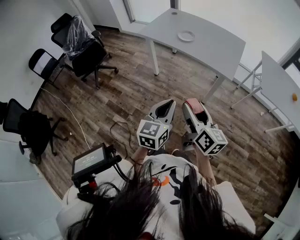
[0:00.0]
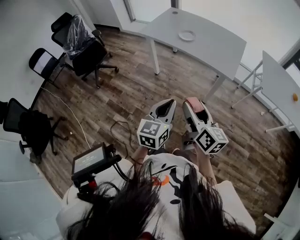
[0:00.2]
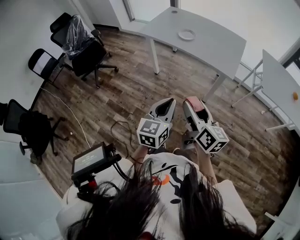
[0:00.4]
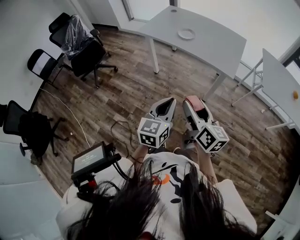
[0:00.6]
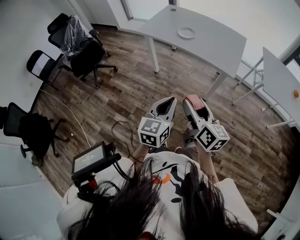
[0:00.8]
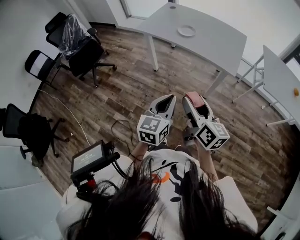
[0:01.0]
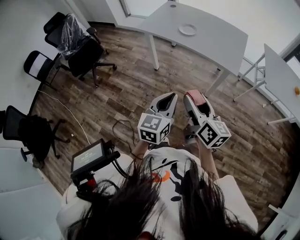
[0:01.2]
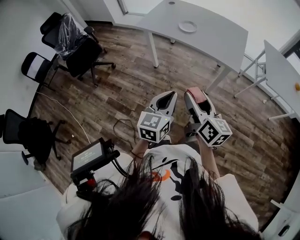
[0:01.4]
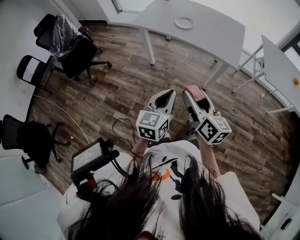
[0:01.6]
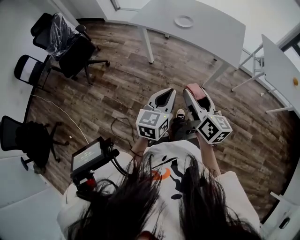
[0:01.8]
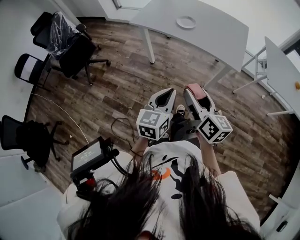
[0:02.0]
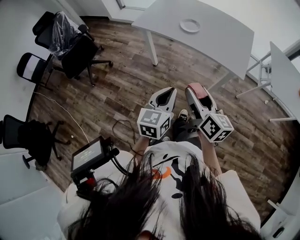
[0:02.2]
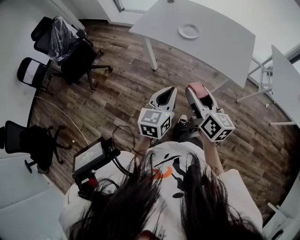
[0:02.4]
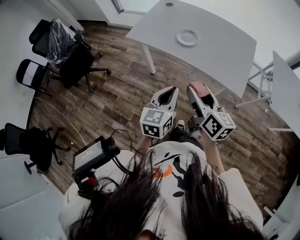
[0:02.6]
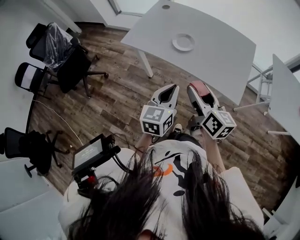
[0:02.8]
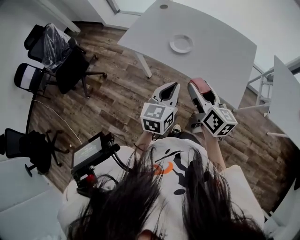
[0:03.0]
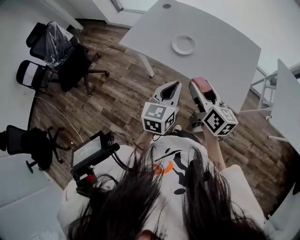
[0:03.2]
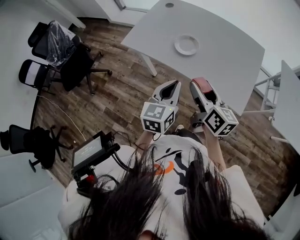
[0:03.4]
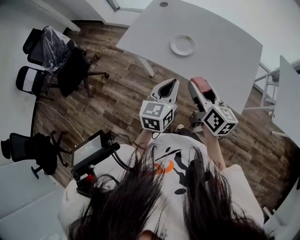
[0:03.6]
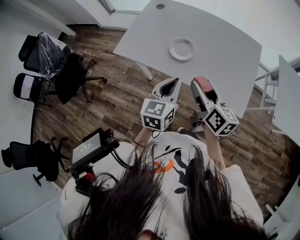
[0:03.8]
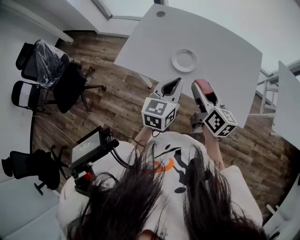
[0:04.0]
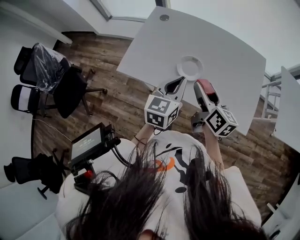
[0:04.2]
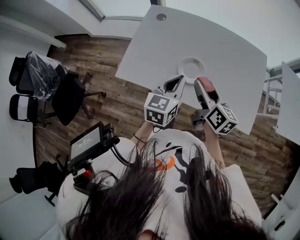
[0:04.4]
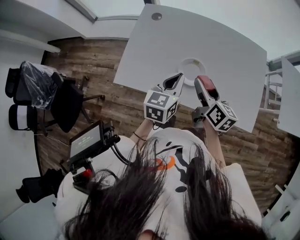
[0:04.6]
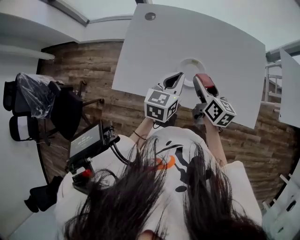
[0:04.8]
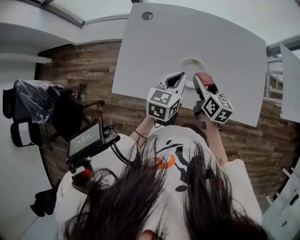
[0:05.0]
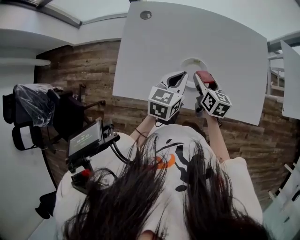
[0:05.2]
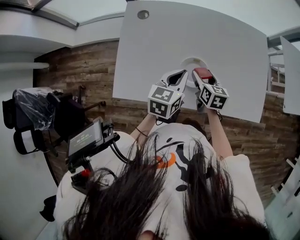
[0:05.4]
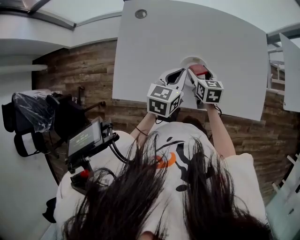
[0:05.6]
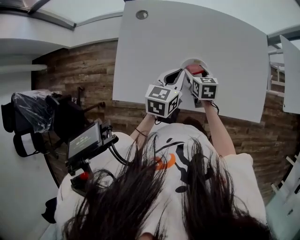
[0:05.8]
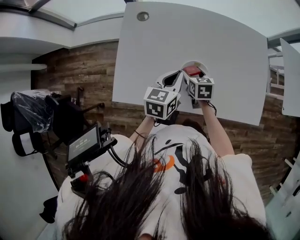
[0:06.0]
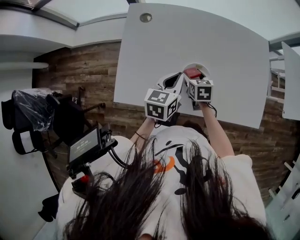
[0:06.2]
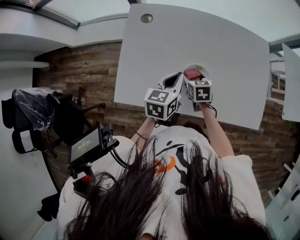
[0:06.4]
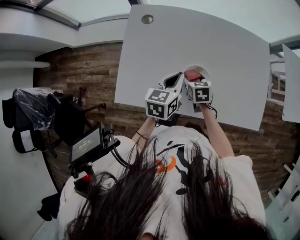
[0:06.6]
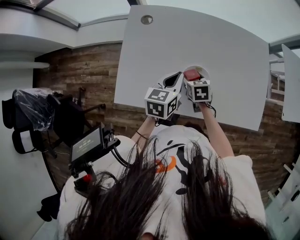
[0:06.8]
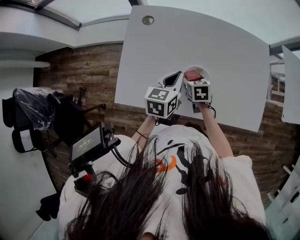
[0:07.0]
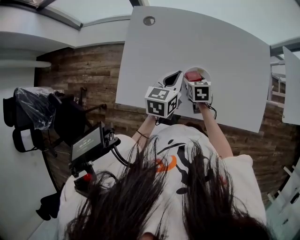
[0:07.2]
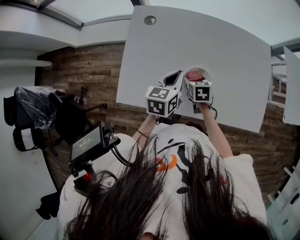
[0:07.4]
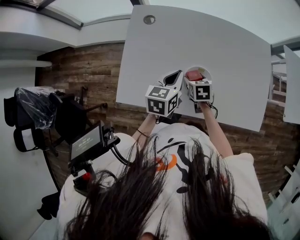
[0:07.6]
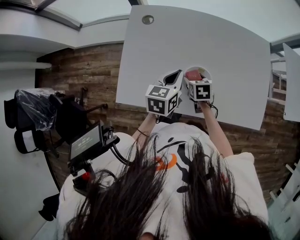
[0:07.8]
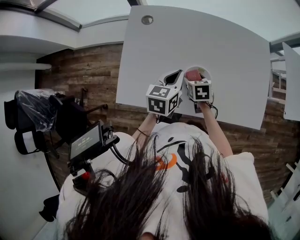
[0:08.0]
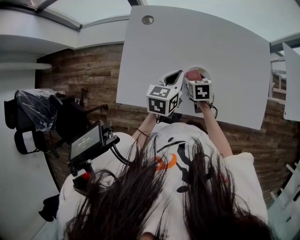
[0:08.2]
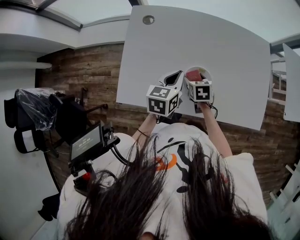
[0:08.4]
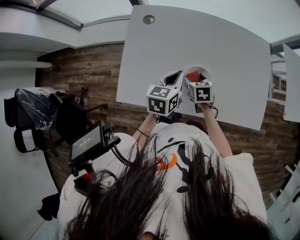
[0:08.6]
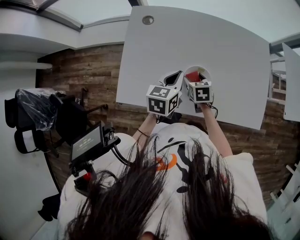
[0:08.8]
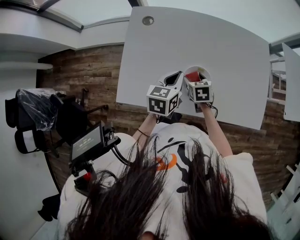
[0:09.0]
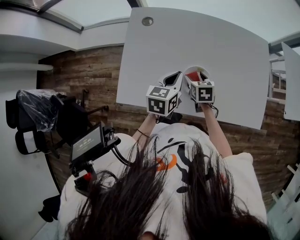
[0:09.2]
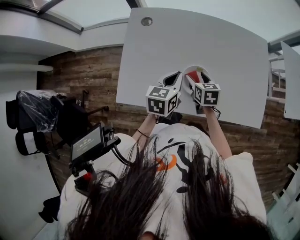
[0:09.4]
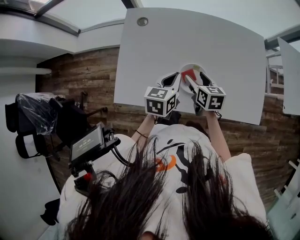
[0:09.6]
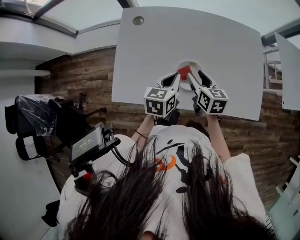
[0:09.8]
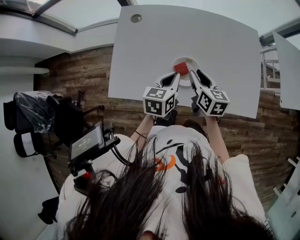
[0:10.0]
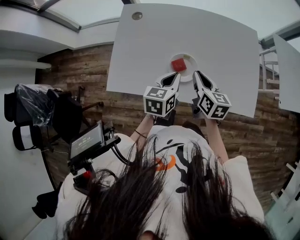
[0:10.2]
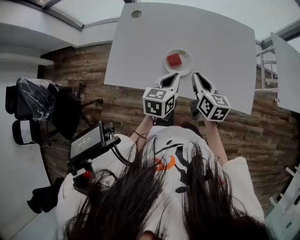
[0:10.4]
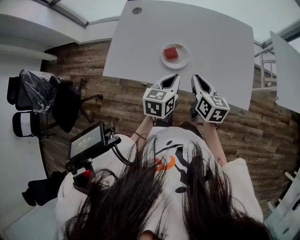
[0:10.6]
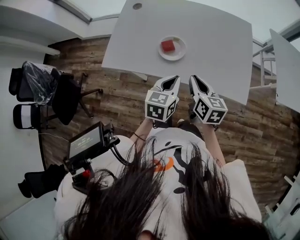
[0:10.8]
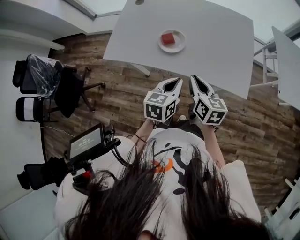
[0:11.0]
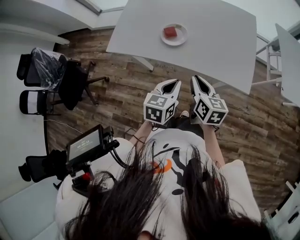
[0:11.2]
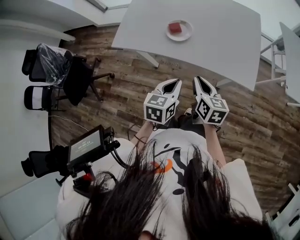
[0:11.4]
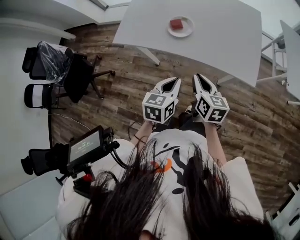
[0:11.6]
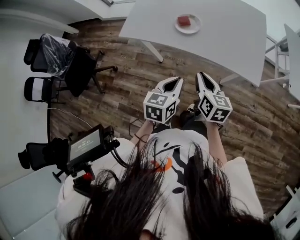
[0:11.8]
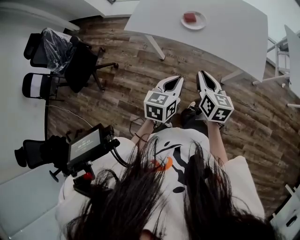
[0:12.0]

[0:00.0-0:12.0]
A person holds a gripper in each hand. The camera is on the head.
0:00.0 to 0:01.6: Both grippers move forward and to the left, approximately 10 cm.
0:01.6 to 0:03.0: Both grippers travel together forward, about 25 cm.
0:03.0 to 0:04.4: The two grippers go approximately 25 cm forward.
0:04.4 to 0:06.0: The left gripper moves forward and downward, about 10 cm; the right gripper shifts roughly 20 cm downward and forward, and tilts its fingers approximately 30 degrees downward.
0:06.0 to 0:07.6: The grippers make only small movements.
0:07.6 to 0:09.0: Neither gripper changes place.
0:09.0 to 0:10.4: The left gripper shifts approximately 15 cm backward and to the right, while the right gripper shifts about 20 cm upward, to the right and backward, changes its angle by approximately 30 degrees, and closes its fingers.
0:10.4 to 0:12.0: The grippers both shift backward by approximately 30 cm.

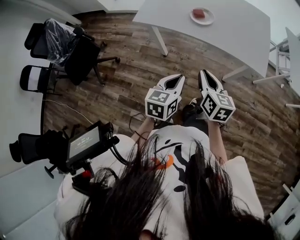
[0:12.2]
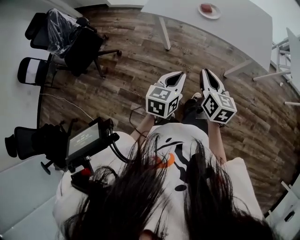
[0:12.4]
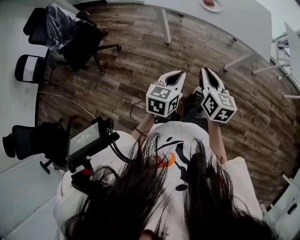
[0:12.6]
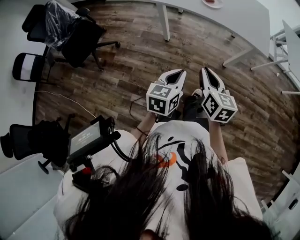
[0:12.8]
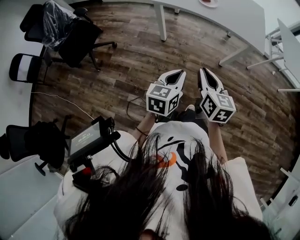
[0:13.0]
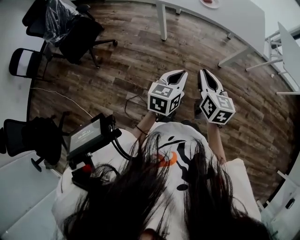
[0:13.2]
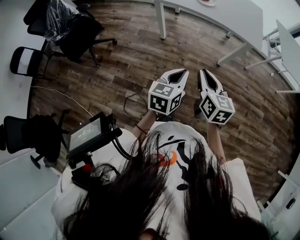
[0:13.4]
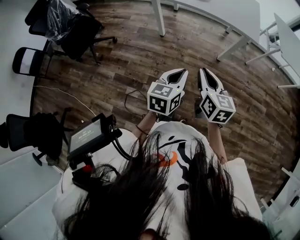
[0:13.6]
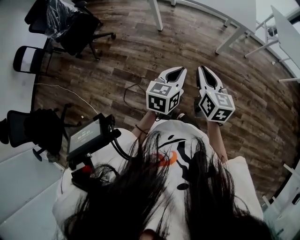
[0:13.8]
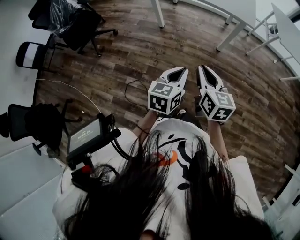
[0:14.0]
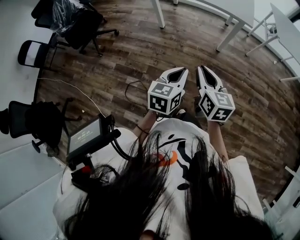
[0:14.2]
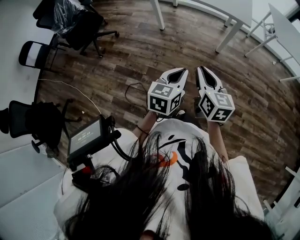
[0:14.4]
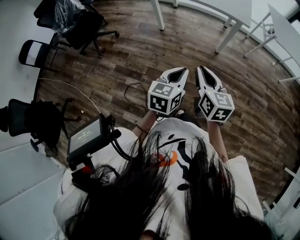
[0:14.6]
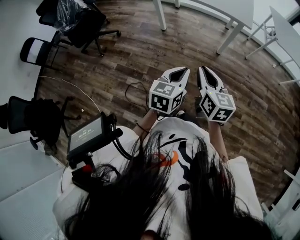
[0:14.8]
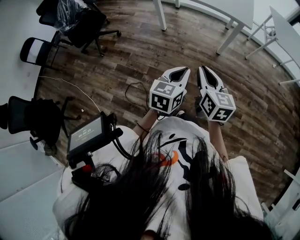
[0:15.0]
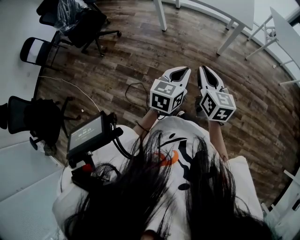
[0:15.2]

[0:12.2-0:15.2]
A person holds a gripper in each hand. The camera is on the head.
0:12.2 to 0:13.8: Both grippers travel together backward, some 35 cm.
0:13.8 to 0:15.2: The grippers both shift backward by about 5 cm.

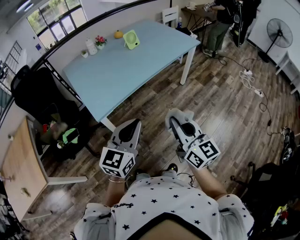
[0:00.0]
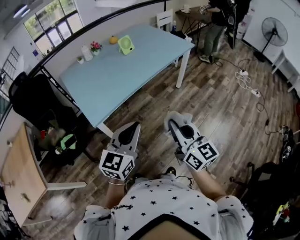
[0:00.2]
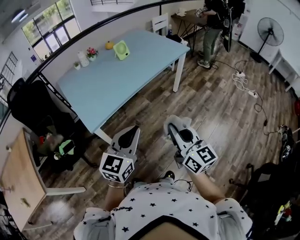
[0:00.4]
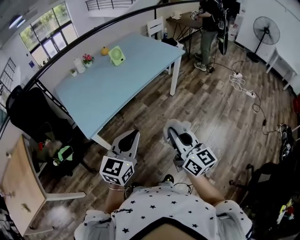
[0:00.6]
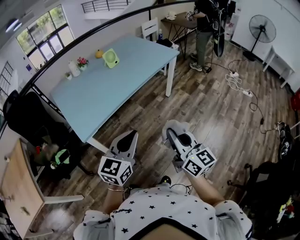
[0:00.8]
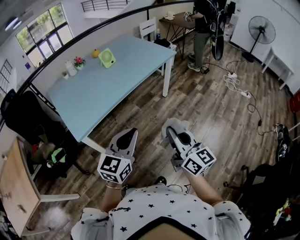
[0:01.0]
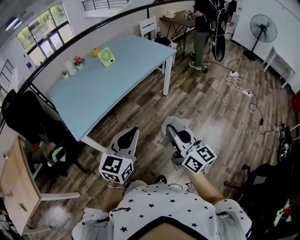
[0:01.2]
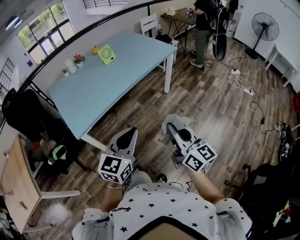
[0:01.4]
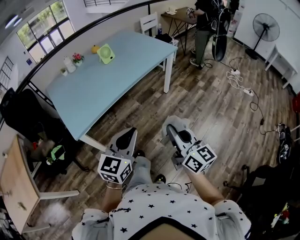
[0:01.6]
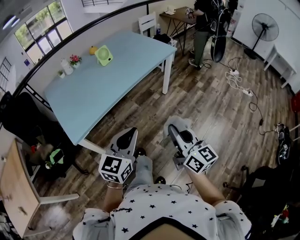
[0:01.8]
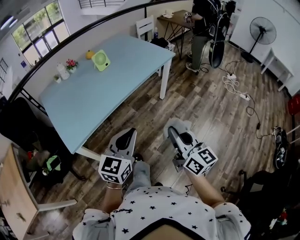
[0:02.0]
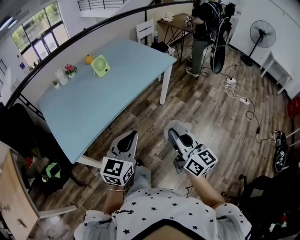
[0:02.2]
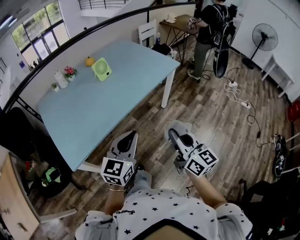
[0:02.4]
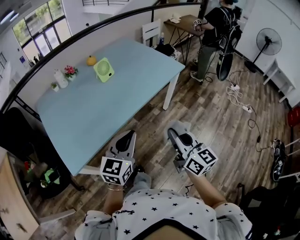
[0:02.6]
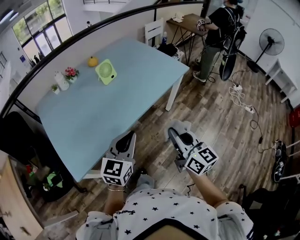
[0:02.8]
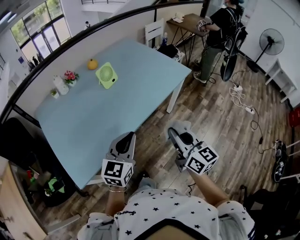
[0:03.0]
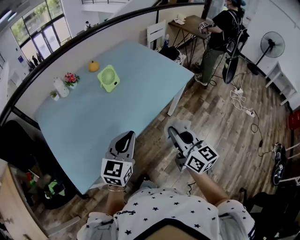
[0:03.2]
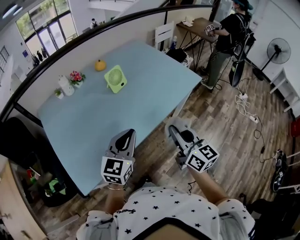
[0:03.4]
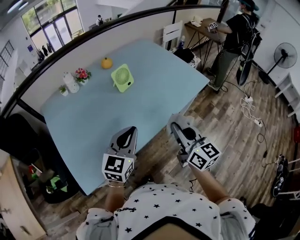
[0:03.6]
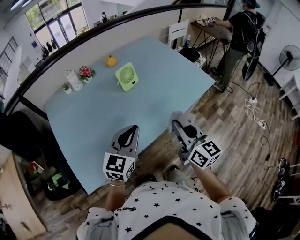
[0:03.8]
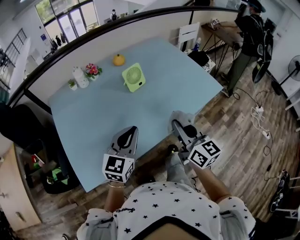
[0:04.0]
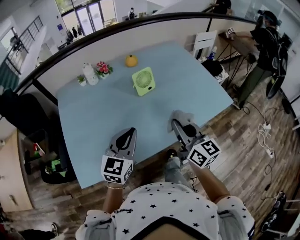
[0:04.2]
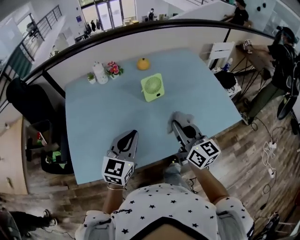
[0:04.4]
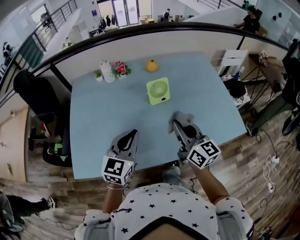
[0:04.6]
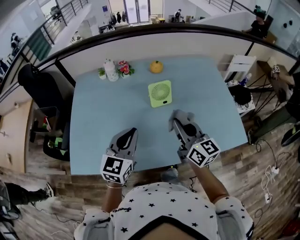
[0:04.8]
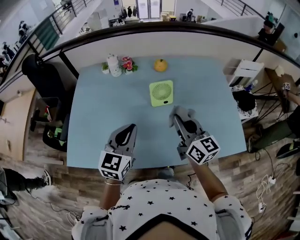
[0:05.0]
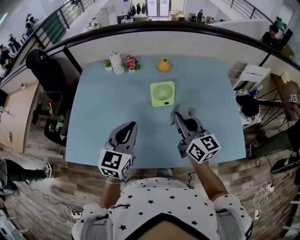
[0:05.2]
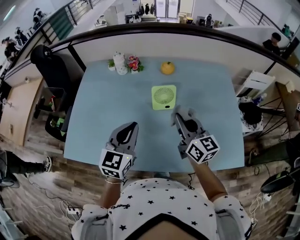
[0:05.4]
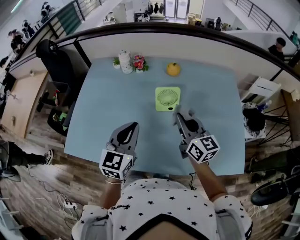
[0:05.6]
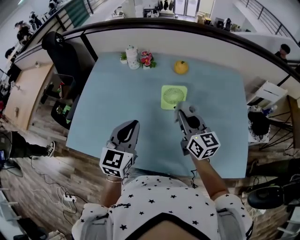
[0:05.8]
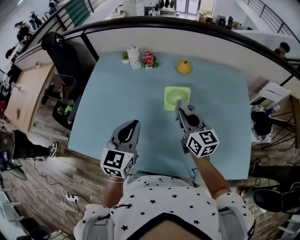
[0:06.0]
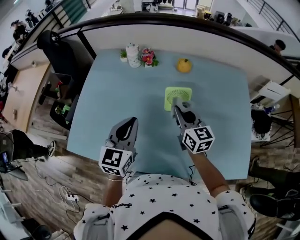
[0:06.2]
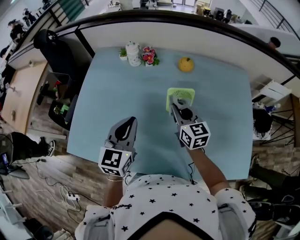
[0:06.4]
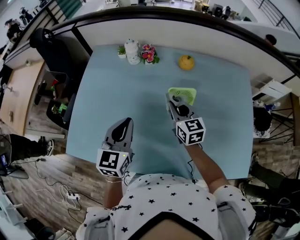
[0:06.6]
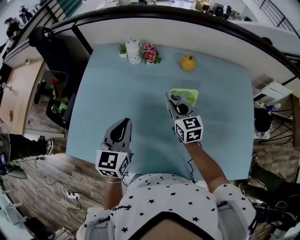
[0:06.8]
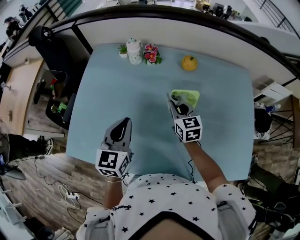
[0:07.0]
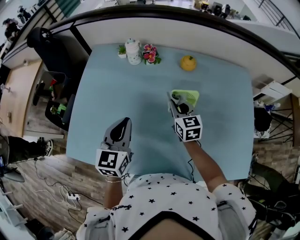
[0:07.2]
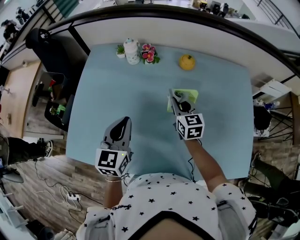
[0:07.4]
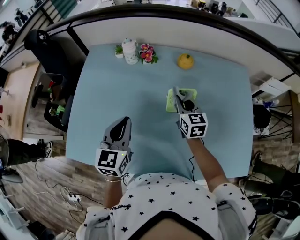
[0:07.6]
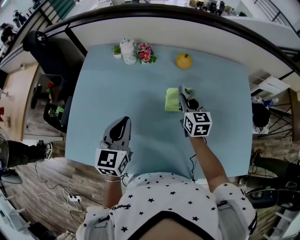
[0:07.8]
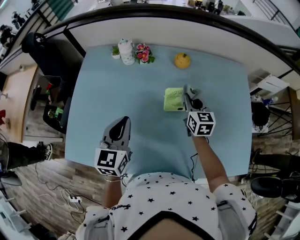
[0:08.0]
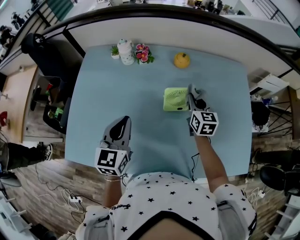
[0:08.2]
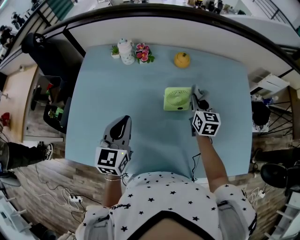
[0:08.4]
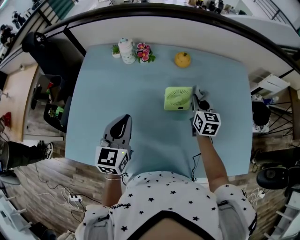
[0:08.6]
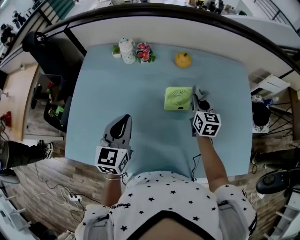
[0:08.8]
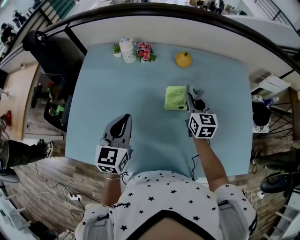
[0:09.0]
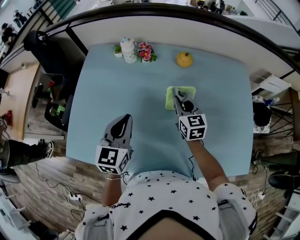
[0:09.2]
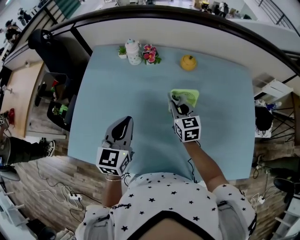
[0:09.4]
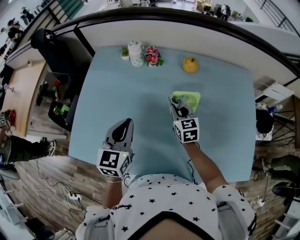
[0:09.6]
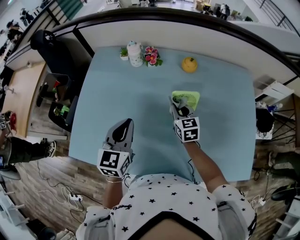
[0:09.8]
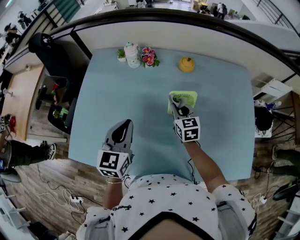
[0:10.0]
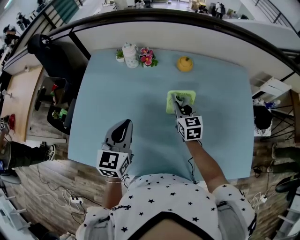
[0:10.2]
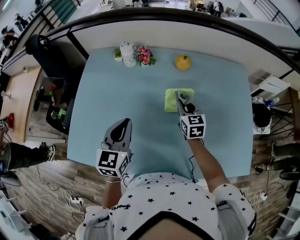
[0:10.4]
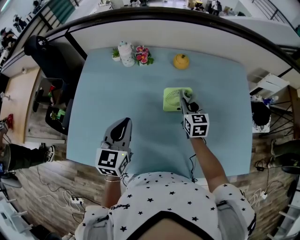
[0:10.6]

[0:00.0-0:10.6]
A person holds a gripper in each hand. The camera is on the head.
0:00.0 to 0:01.6: Both grippers travel together to the right, some 15 cm.
0:01.6 to 0:03.0: The grippers both shift forward by some 30 cm.
0:03.0 to 0:04.6: The right gripper moves approximately 30 cm, and changes its angle by about 30 degrees; the left gripper ends up some 20 cm from where it was, and turns by approximately 30 degrees.
0:04.6 to 0:06.0: The left gripper travels forward by about 5 cm, and swivels about 30 degrees; the right gripper heads forward, covering some 15 cm.
0:06.0 to 0:07.6: The right gripper is displaced forward and downward by roughly 15 cm; the left gripper is displaced forward and to the left by roughly 10 cm.
0:07.6 to 0:09.0: The right gripper goes about 5 cm to the right.
0:09.0 to 0:10.6: The right gripper moves some 10 cm to the left and comes back.
